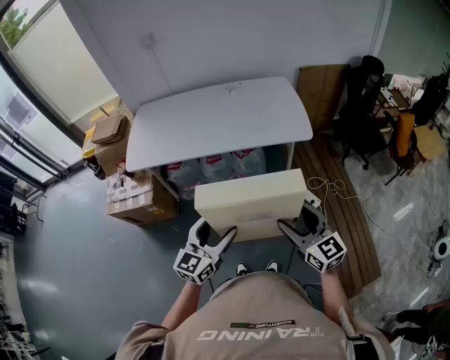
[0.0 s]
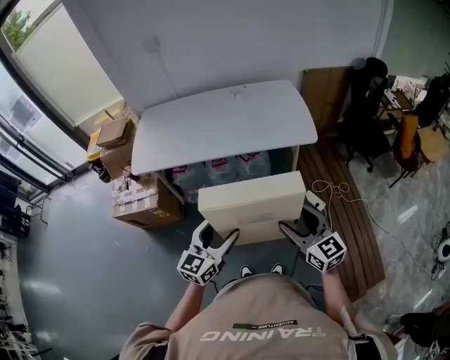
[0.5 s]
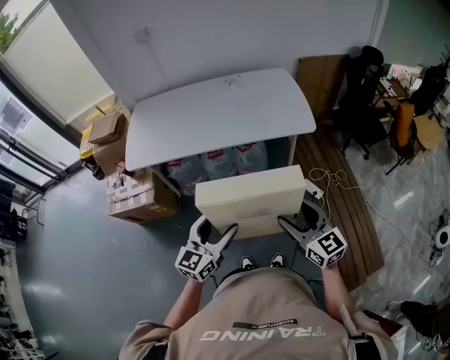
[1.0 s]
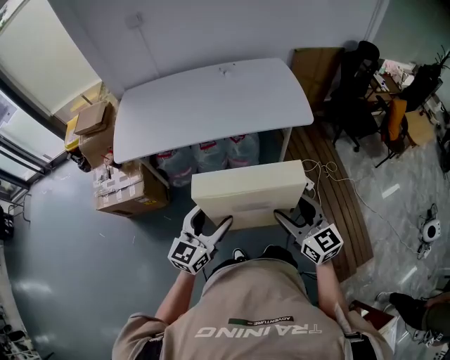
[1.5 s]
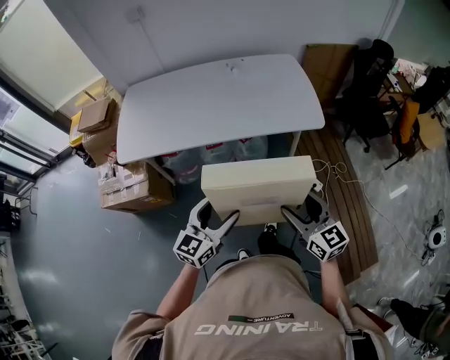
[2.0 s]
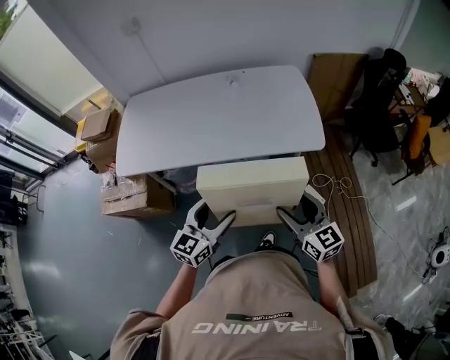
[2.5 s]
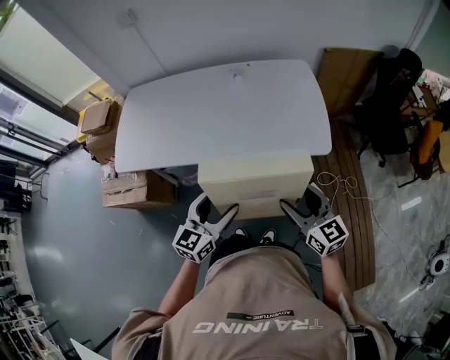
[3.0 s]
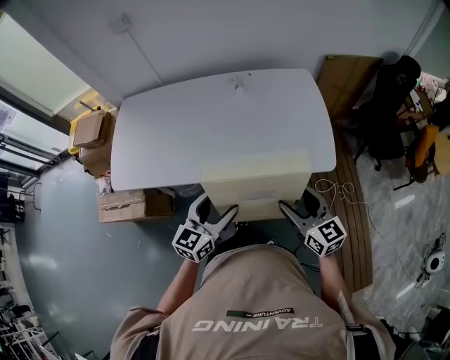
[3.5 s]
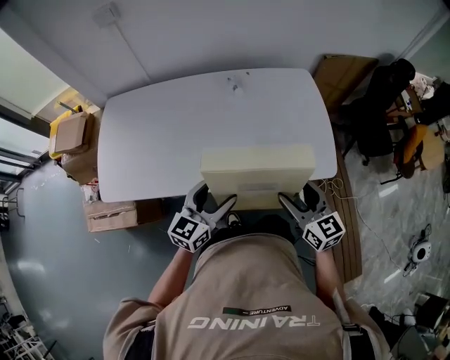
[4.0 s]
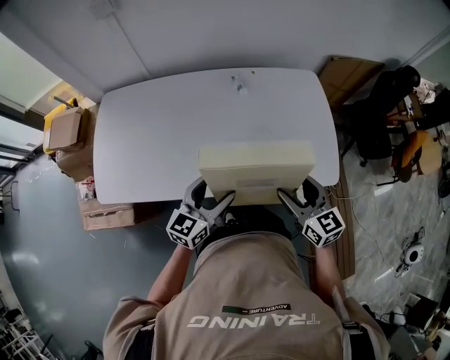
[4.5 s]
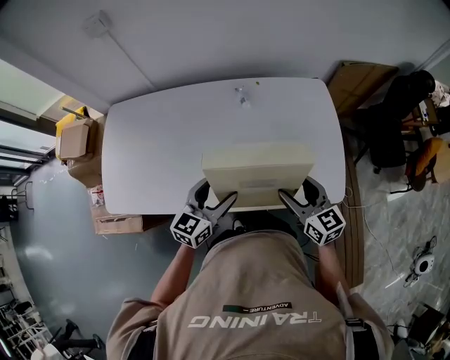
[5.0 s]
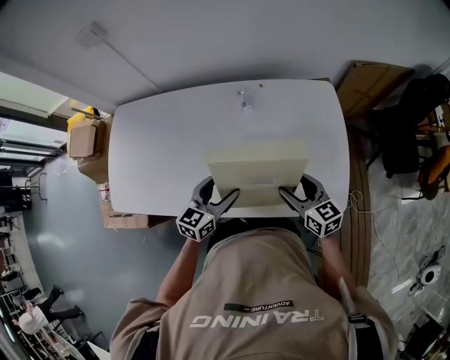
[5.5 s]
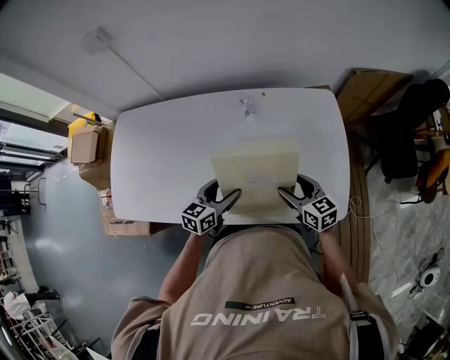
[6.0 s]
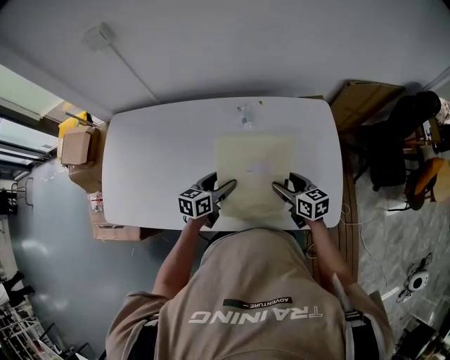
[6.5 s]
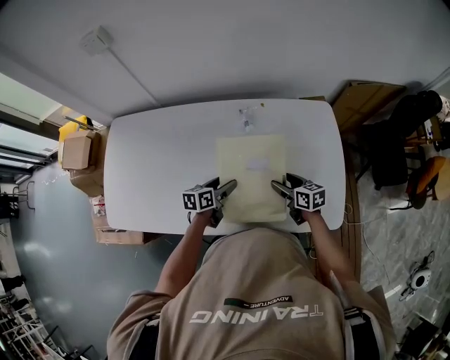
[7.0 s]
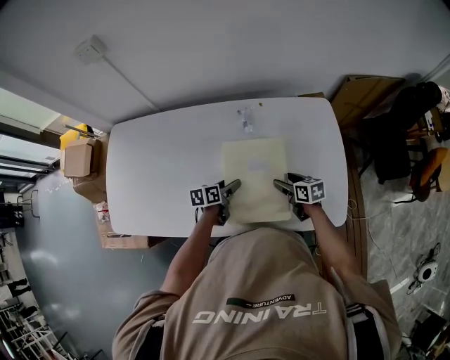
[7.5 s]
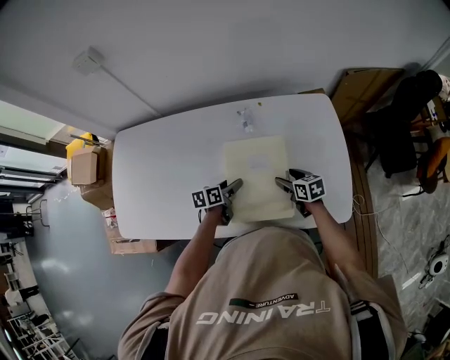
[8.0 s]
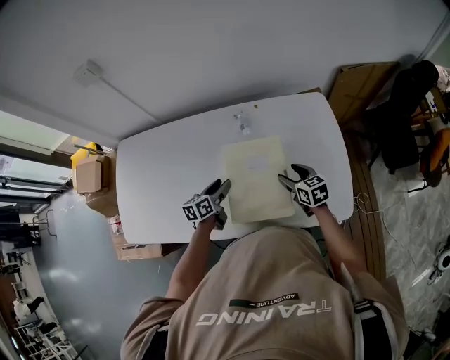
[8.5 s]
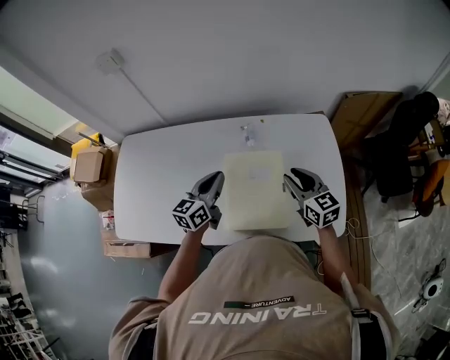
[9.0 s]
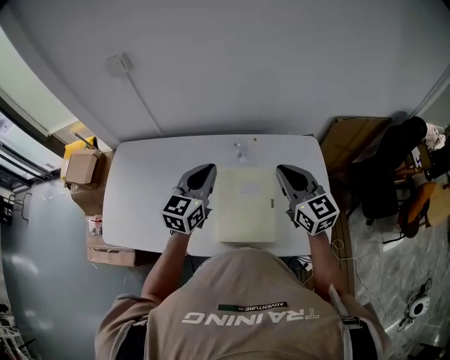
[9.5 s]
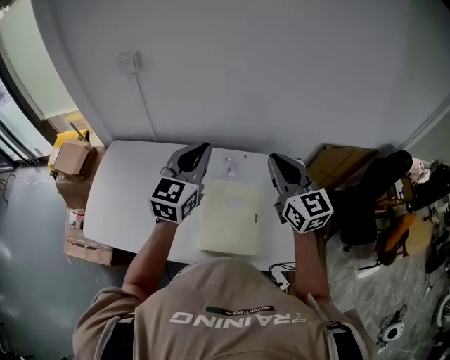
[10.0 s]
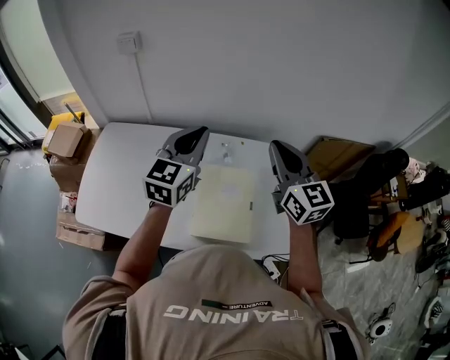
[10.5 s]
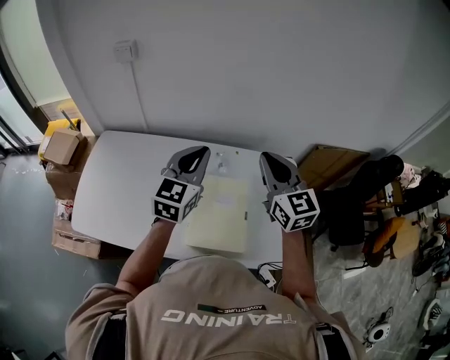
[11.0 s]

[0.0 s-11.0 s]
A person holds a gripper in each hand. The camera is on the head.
0.0 to 2.0 s: Both grippers move forward, roughly 10 cm.
2.0 to 3.5 s: Both grippers travel together forward, approximately 25 cm.
3.5 to 5.5 s: Both grippers travel together forward, some 25 cm.
5.5 to 7.5 s: The two grippers go approximately 15 cm downward and forward. The right gripper turns by roughly 30 degrees. Meanwhile the left gripper rotates about 40 degrees.
7.5 to 9.0 s: Both grippers travel together upward, roughly 20 cm. The right gripper rotates approximately 40 degrees, and closes. Meanwhile the left gripper turns by approximately 40 degrees, and closes its fingers.
9.0 to 11.0 s: Both grippers move upward, about 20 cm. The right gripper rotates some 20 degrees, and closes, while the left gripper turns by some 30 degrees.

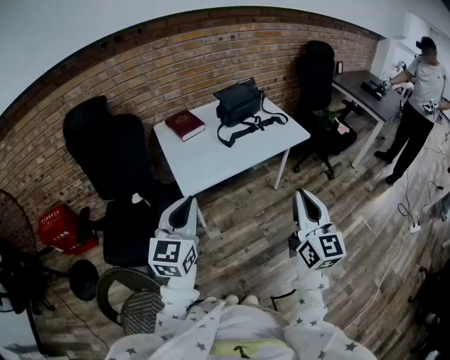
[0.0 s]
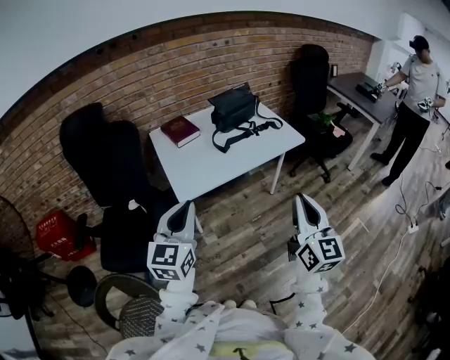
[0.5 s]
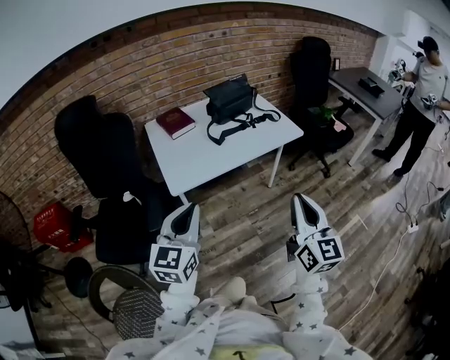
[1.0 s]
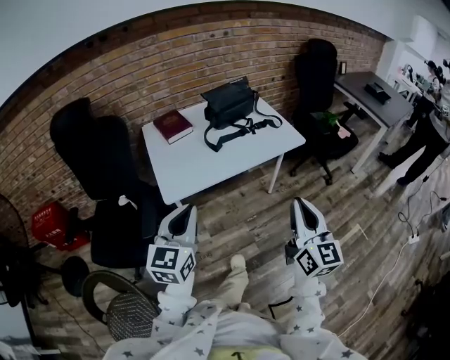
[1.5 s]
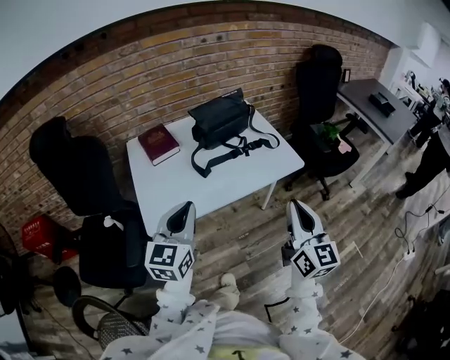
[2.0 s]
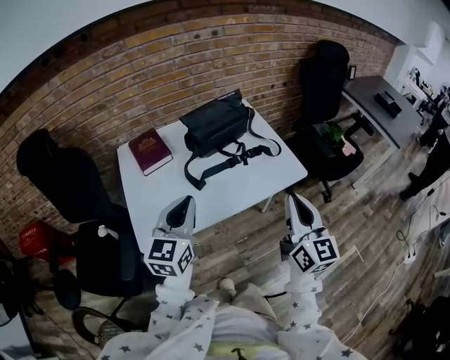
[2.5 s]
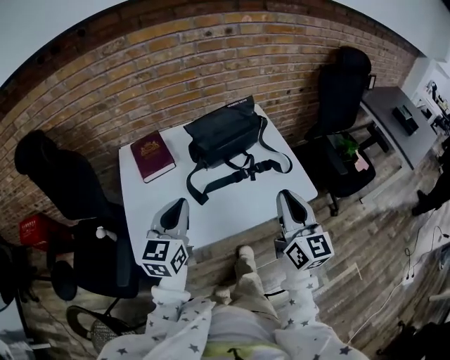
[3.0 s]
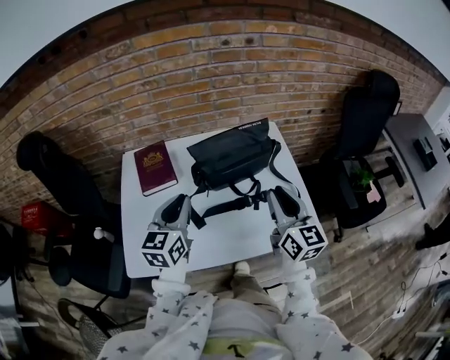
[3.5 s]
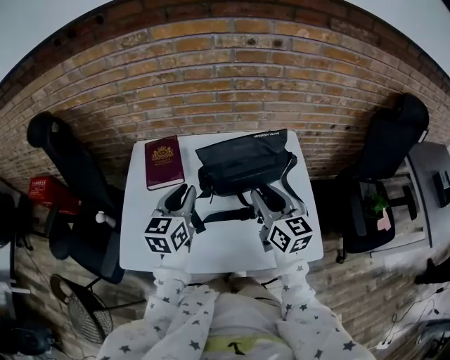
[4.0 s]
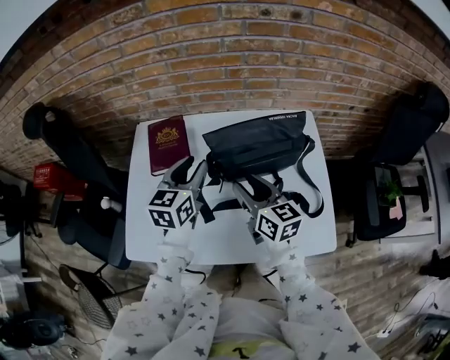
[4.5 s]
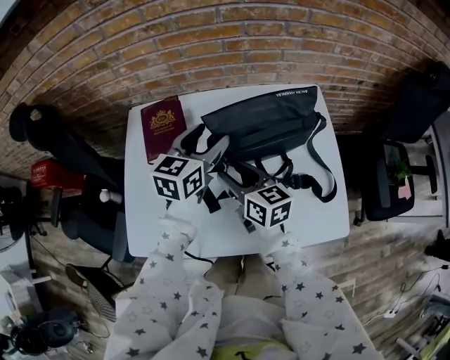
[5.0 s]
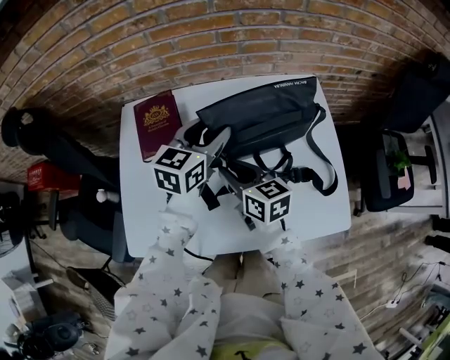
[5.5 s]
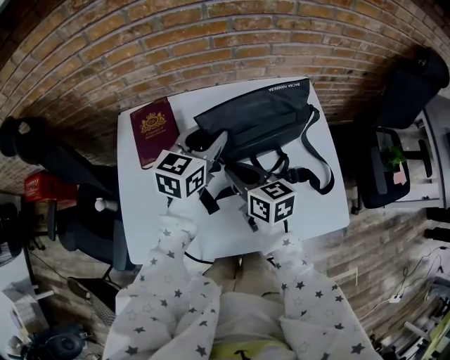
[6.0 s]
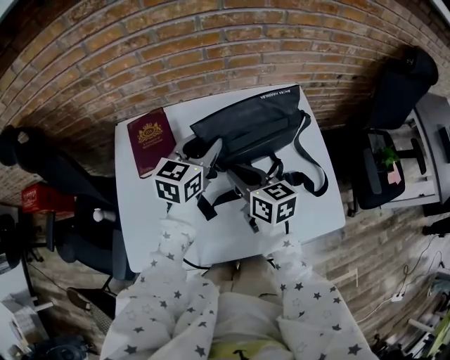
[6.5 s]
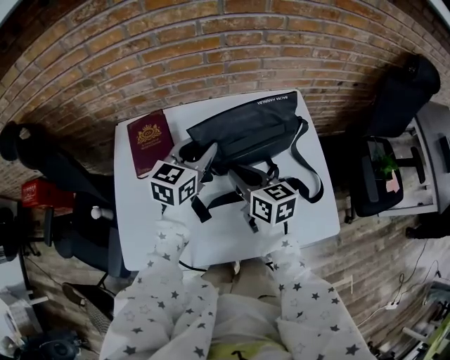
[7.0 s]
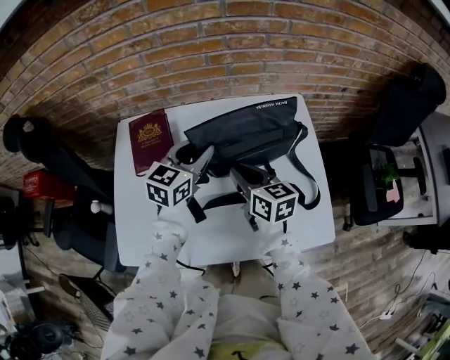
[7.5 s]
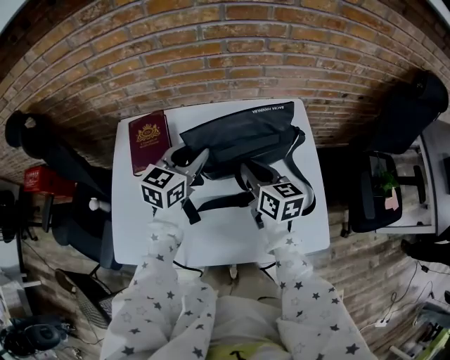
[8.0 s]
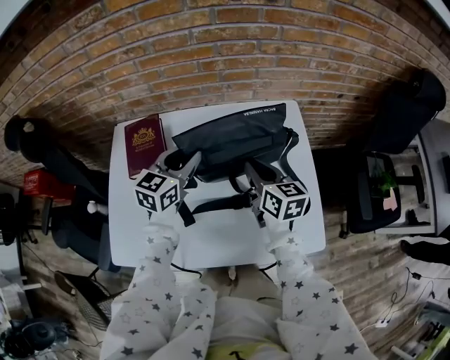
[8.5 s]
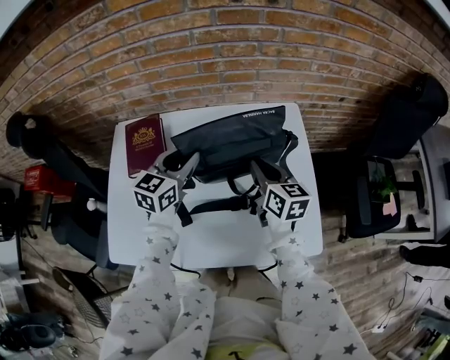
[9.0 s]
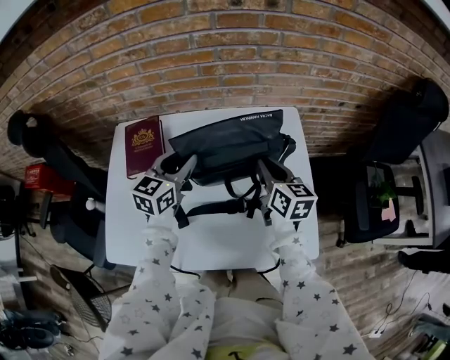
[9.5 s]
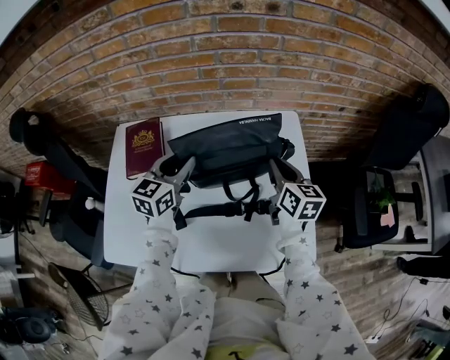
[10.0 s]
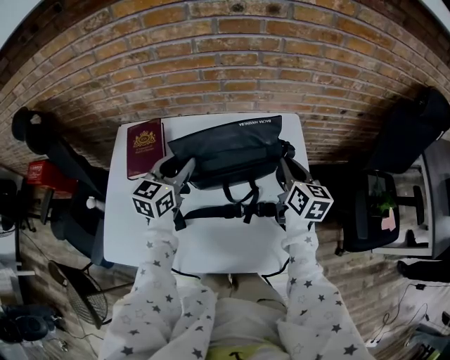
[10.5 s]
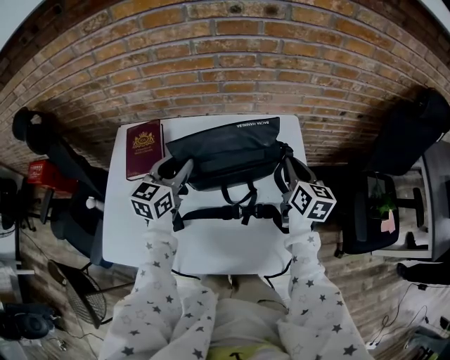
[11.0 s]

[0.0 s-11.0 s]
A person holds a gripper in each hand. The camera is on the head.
0.0 to 2.0 s: The two grippers go some 25 cm forward and to the right.
2.0 to 3.5 s: Both grippers travel together forward, about 35 cm. The right gripper changes its angle by roughly 20 degrees.
3.5 to 5.5 s: The left gripper shifts roughly 20 cm forward, downward and to the right, and opens its fingers. Meanwhile the right gripper is displaced to the left, downward and forward by roughly 25 cm, turns by roughly 40 degrees, and opens, then closes again.
5.5 to 7.5 s: The left gripper closes; the right gripper moves to the right, approximately 10 cm.
7.5 to 9.0 s: The right gripper heads to the right, covering about 10 cm.
9.0 to 11.0 s: The right gripper shifts approximately 15 cm to the right and forward.

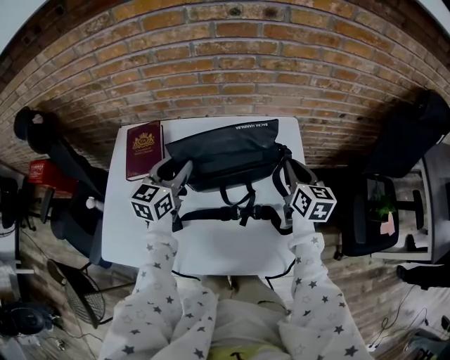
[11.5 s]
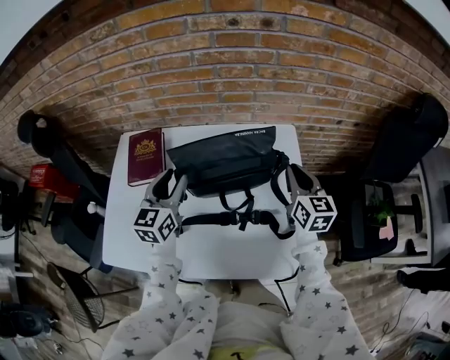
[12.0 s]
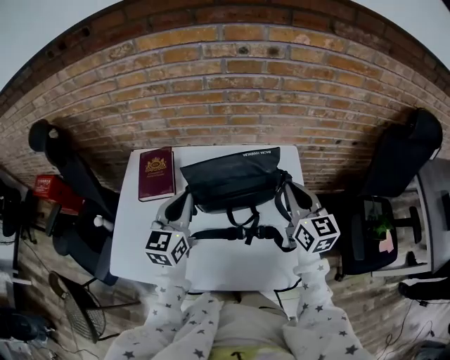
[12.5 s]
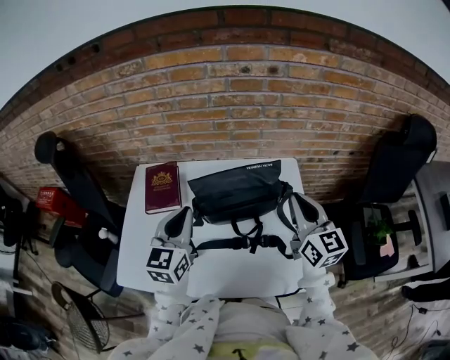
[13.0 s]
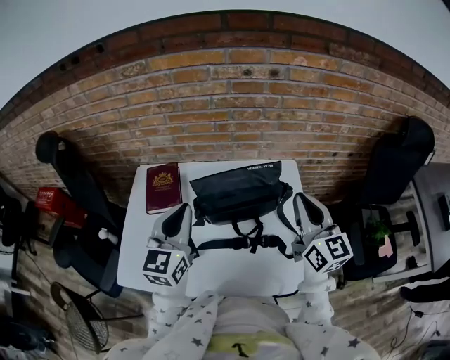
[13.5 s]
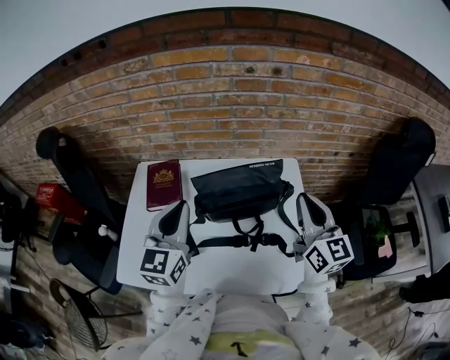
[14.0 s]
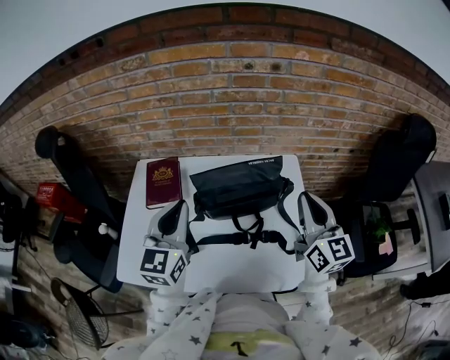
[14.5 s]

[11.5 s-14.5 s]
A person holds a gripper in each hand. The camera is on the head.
11.5 to 13.0 s: The two grippers go some 15 cm upward and backward. The left gripper closes up, while the right gripper turns by some 20 degrees.
13.0 to 14.5 s: The left gripper shifts by about 5 cm.

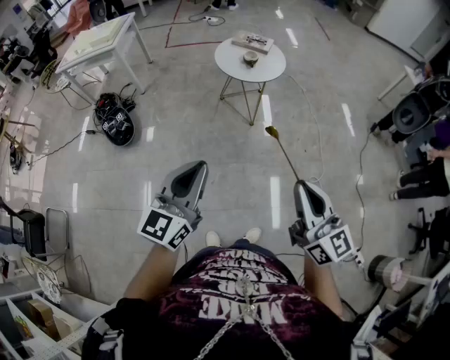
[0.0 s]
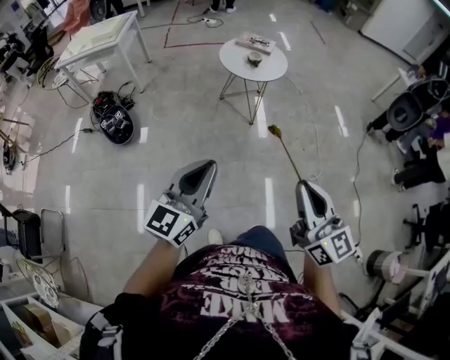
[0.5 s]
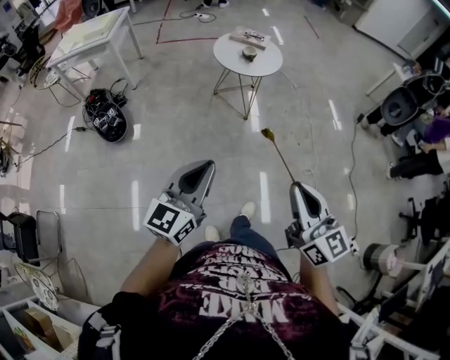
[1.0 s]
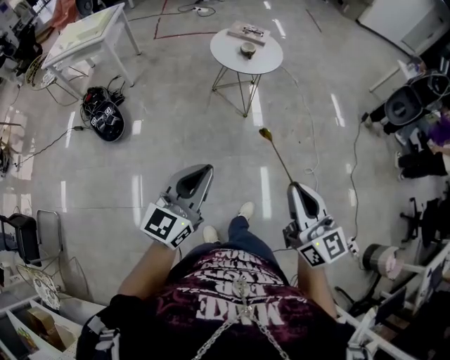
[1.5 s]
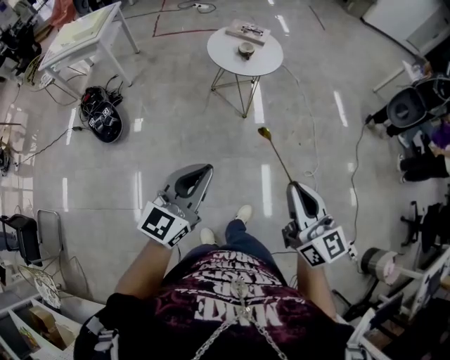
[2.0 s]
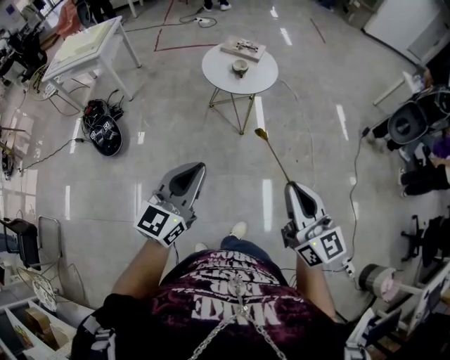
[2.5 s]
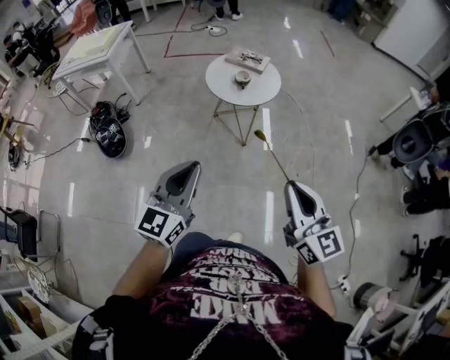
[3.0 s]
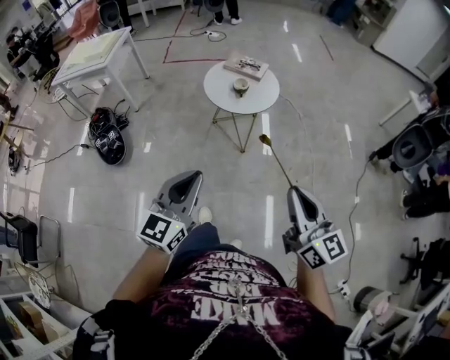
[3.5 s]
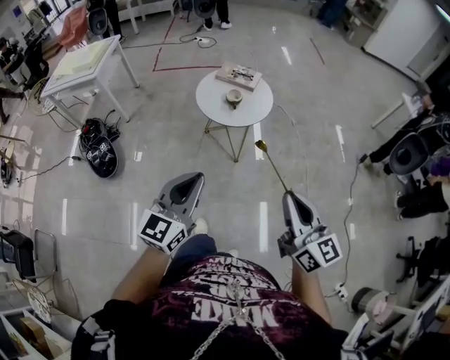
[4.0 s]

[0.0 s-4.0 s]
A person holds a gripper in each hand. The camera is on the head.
0.0 to 2.0 s: Both grippers travel together forward, roughly 5 cm.
2.0 to 4.0 s: The left gripper moves forward, some 15 cm; the right gripper moves forward and to the right, about 20 cm.
